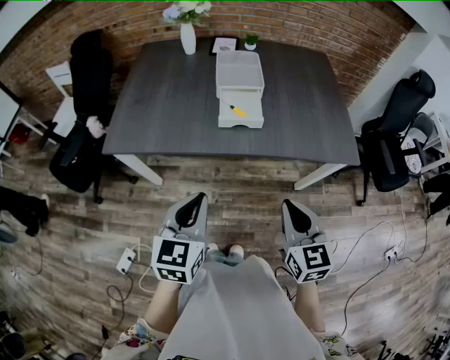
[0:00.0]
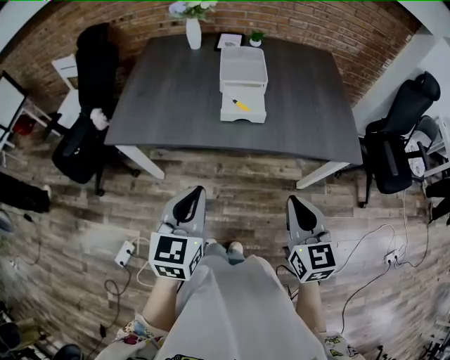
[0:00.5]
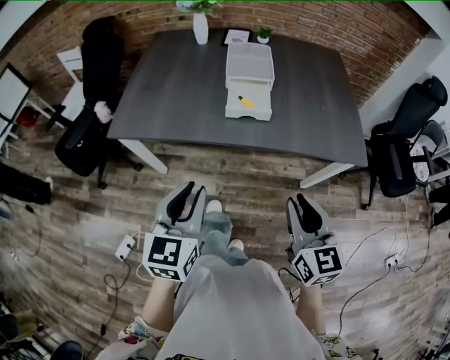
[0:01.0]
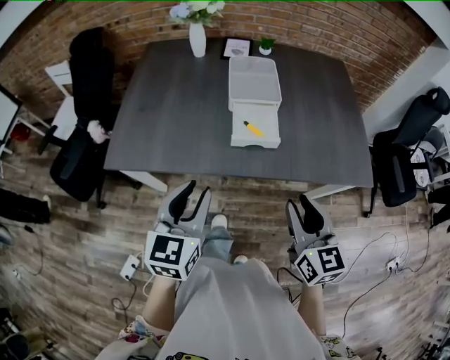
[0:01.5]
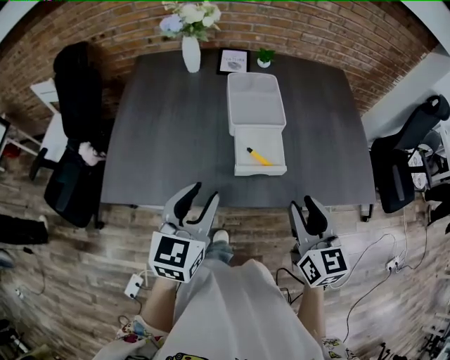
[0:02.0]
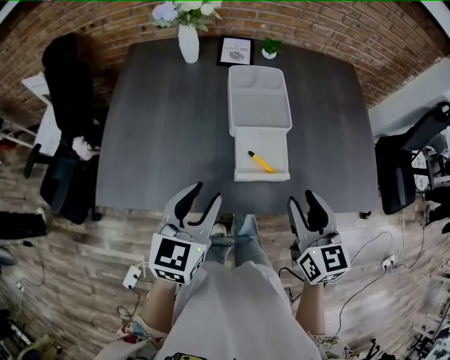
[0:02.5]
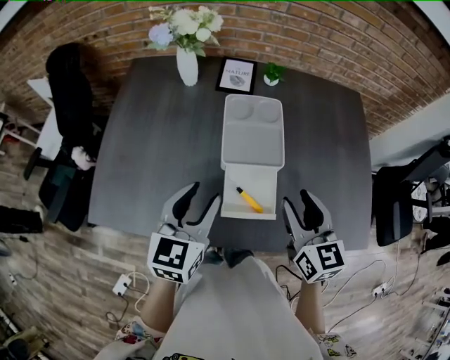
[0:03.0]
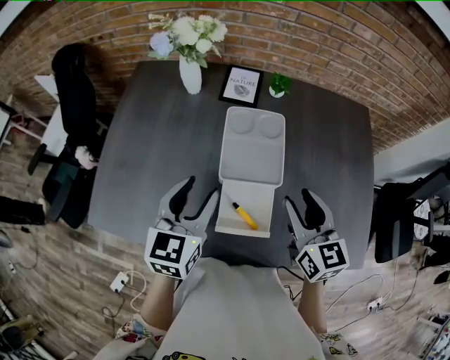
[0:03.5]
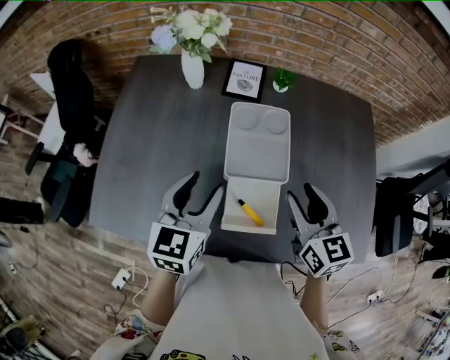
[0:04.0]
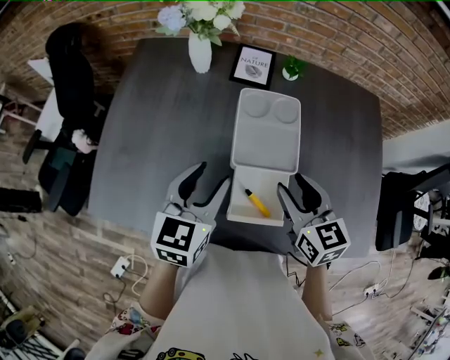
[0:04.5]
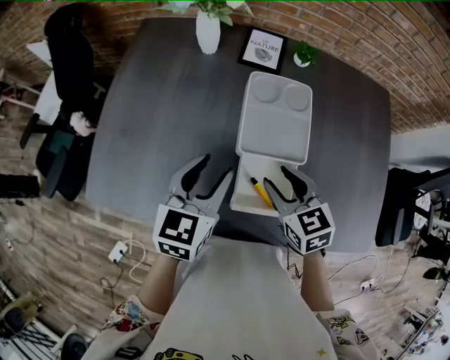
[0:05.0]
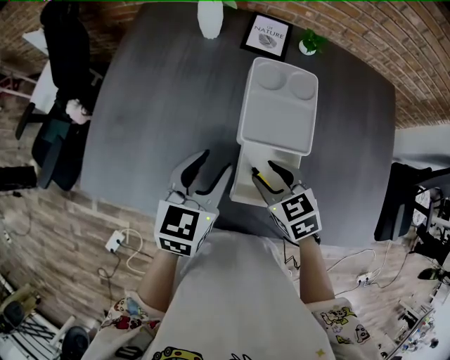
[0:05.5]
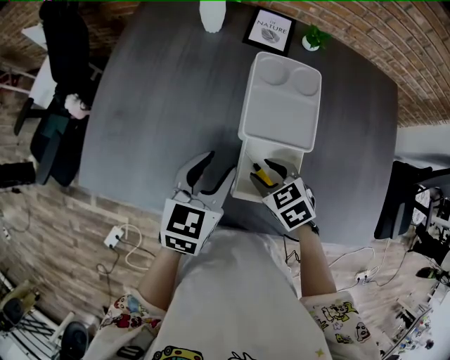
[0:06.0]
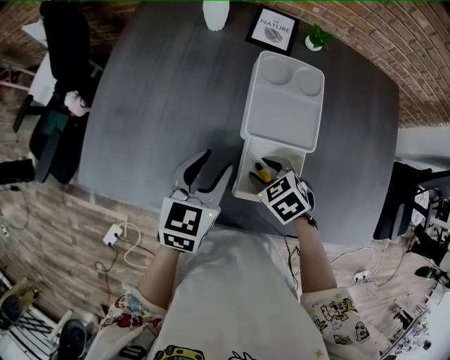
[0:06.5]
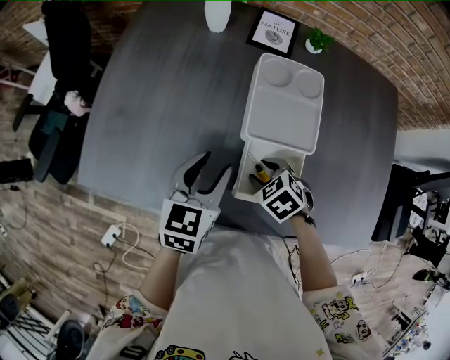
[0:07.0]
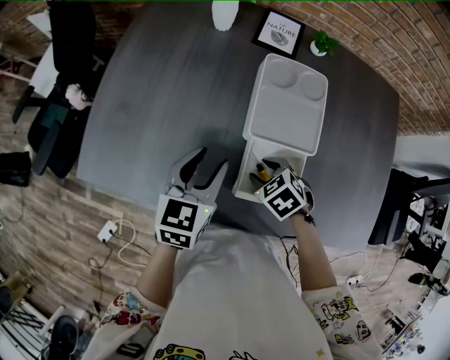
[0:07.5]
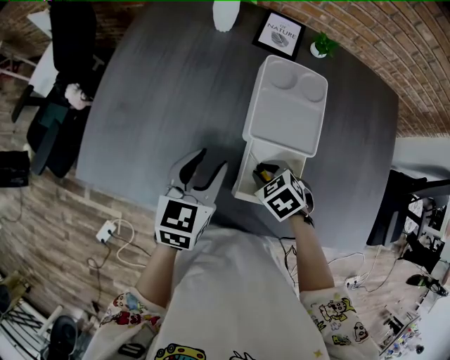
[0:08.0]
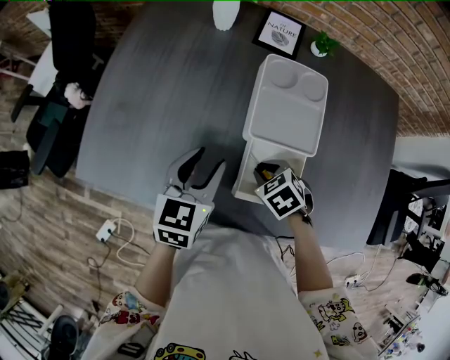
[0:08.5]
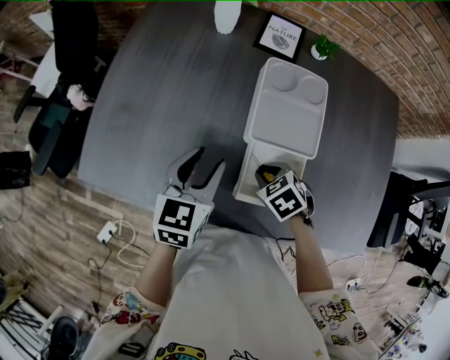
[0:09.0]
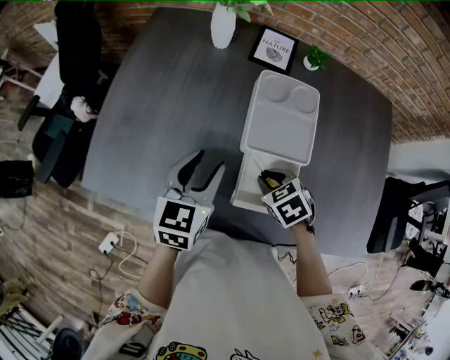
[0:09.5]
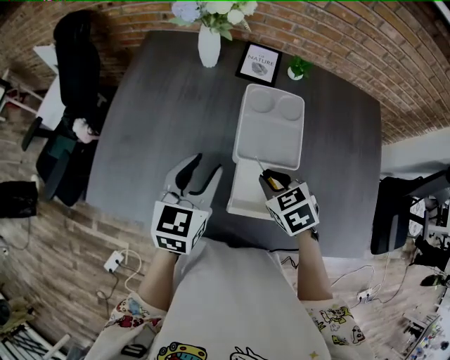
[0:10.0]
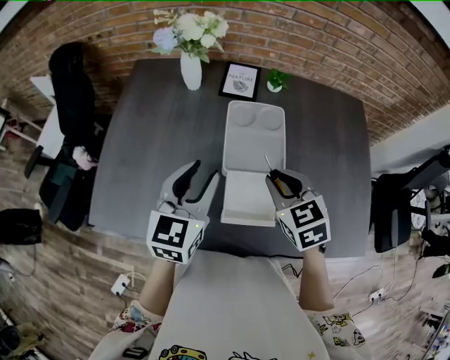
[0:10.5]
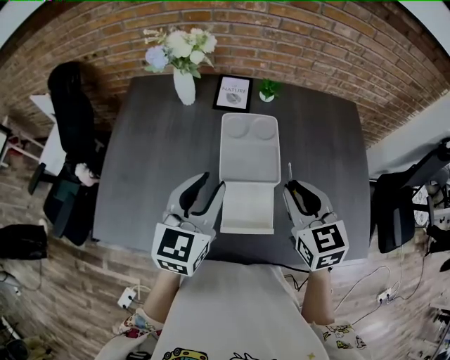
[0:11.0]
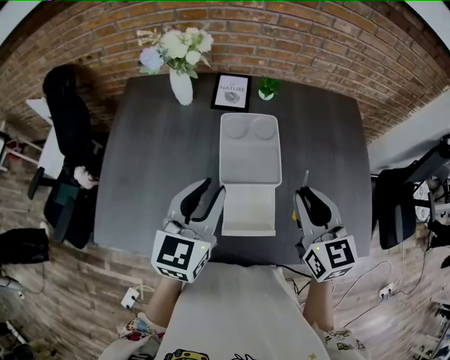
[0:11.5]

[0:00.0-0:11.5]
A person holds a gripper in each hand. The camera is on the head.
0:00.0 to 0:02.0: The grippers both shift forward by about 20 cm. The right gripper opens up; the left gripper opens up.
0:02.0 to 0:04.0: The two grippers go about 20 cm forward.
0:04.0 to 0:06.0: The left gripper moves downward, some 10 cm; the right gripper goes roughly 20 cm downward and to the left, and tilts its fingers roughly 40 degrees downward.
0:06.0 to 0:07.5: There are only small adjustments of the grippers.
0:07.5 to 0:09.5: The right gripper closes its fingers.
0:09.5 to 0:11.5: The left gripper travels upward and to the right by some 15 cm. Meanwhile the right gripper goes roughly 25 cm upward and to the right, and tips its fingers upward by about 50 degrees.

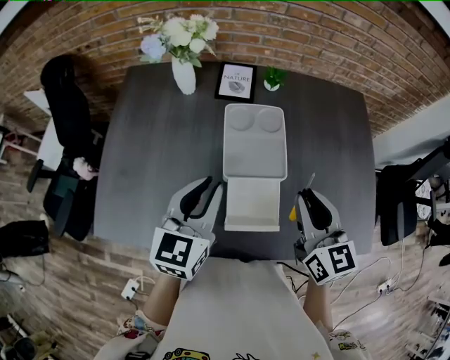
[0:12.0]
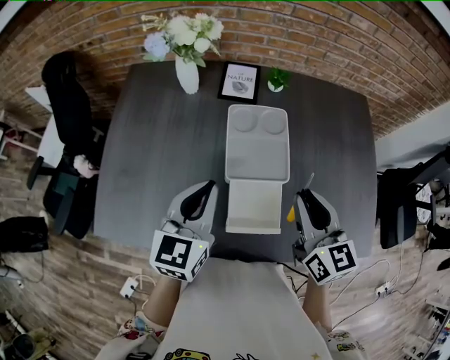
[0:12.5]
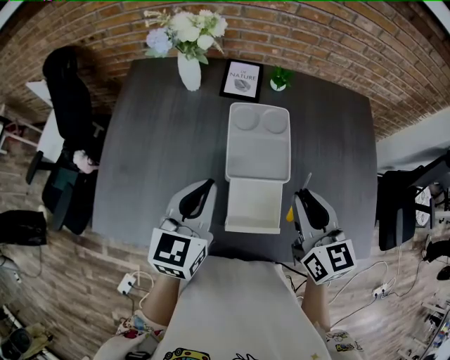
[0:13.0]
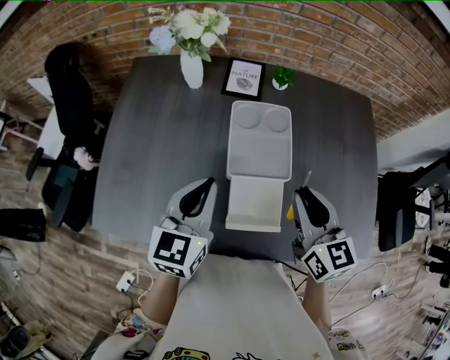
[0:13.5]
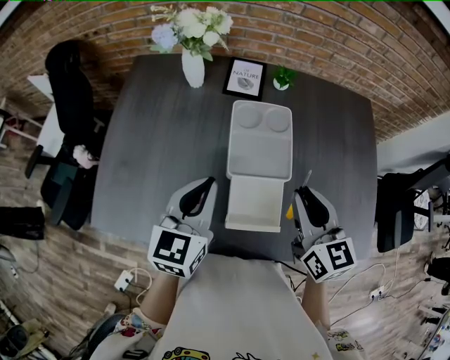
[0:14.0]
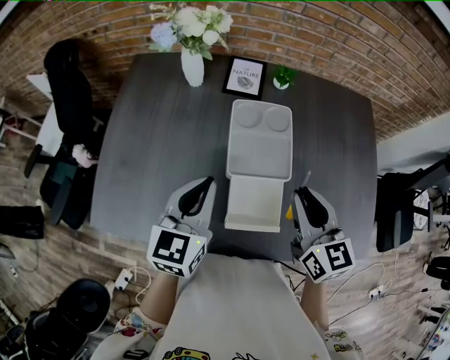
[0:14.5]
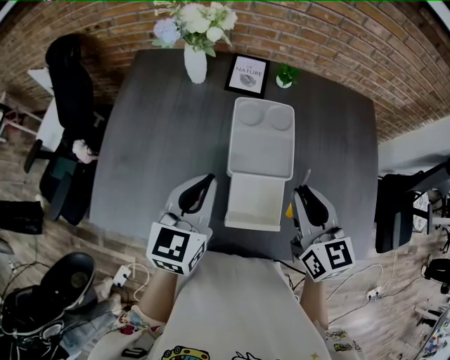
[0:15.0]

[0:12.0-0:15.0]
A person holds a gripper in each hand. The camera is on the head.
0:12.0 to 0:13.5: The grippers stay close to where they were, moving slightly.
0:13.5 to 0:15.0: Both grippers stay put.

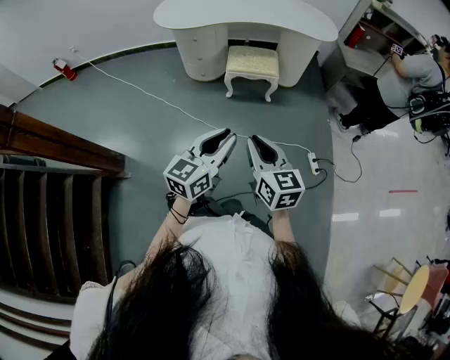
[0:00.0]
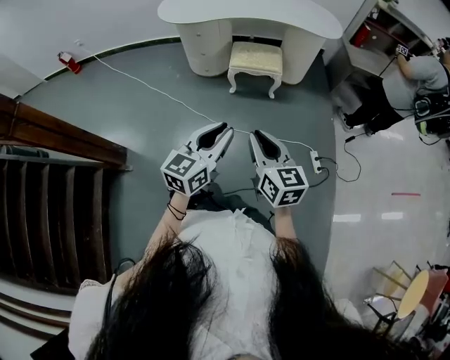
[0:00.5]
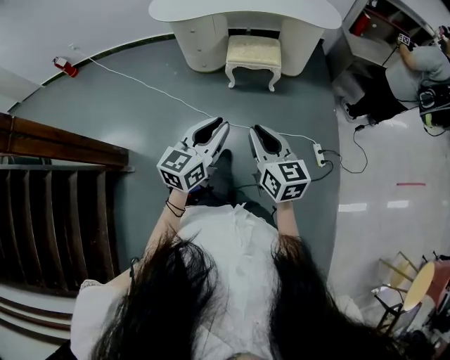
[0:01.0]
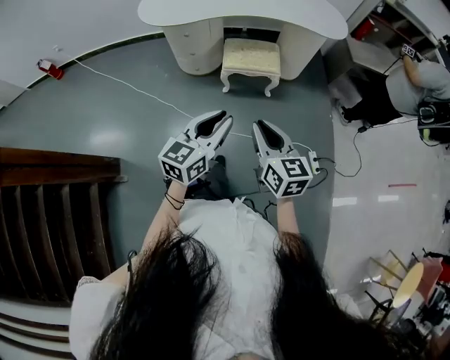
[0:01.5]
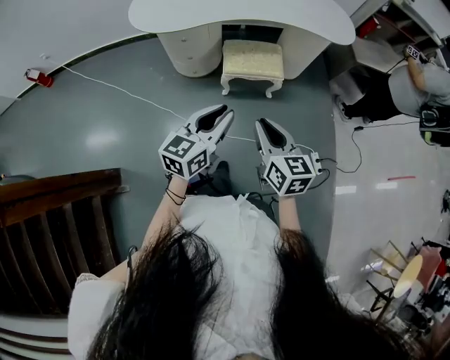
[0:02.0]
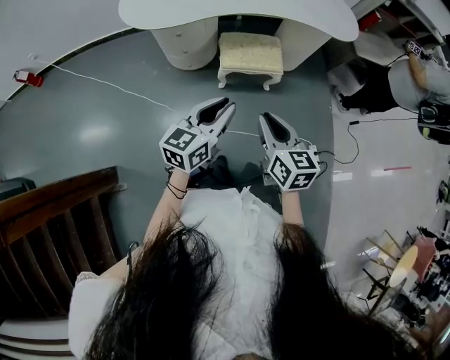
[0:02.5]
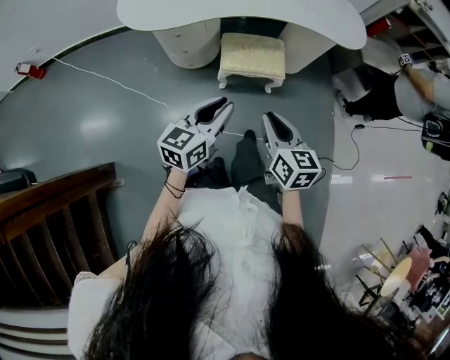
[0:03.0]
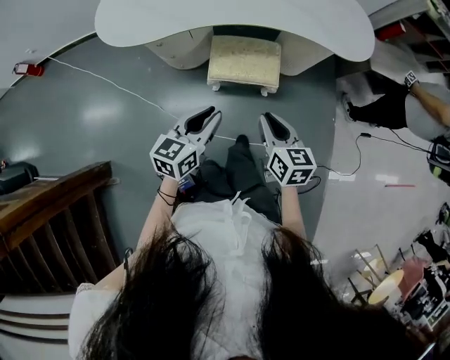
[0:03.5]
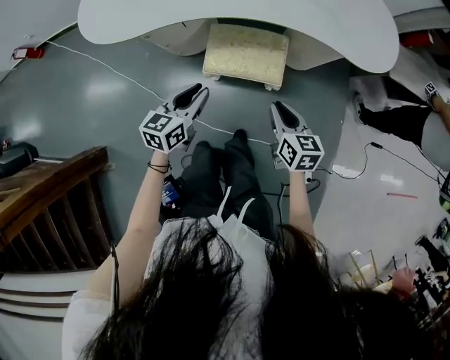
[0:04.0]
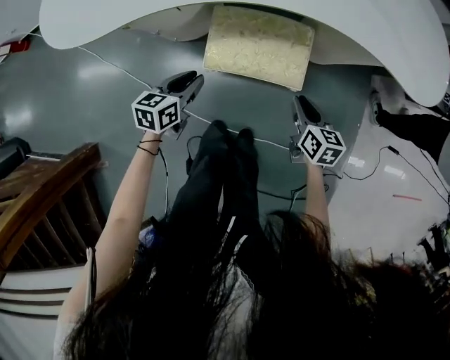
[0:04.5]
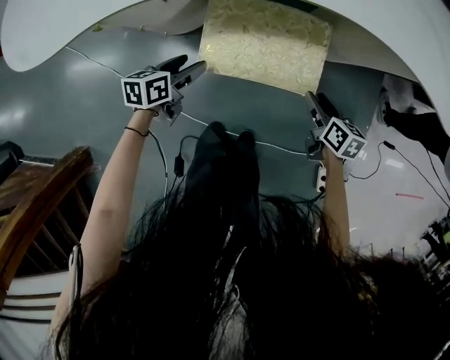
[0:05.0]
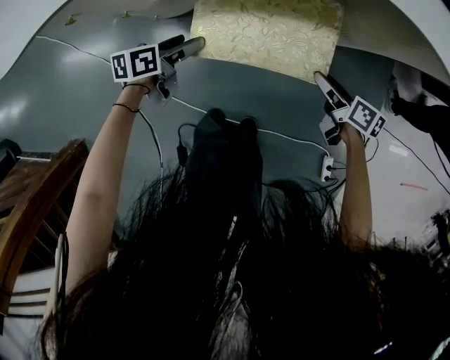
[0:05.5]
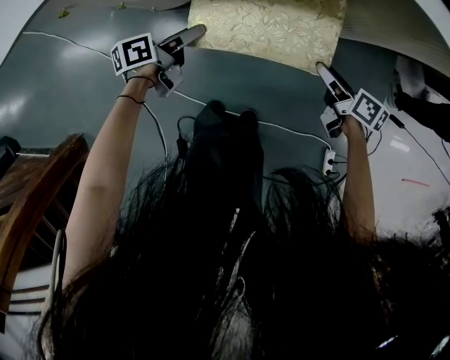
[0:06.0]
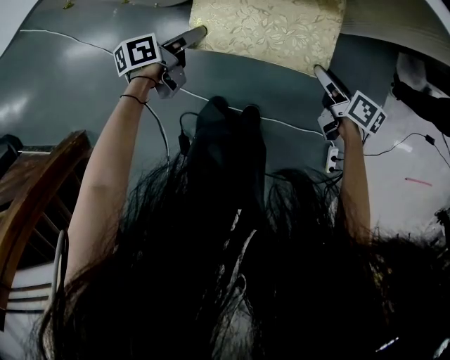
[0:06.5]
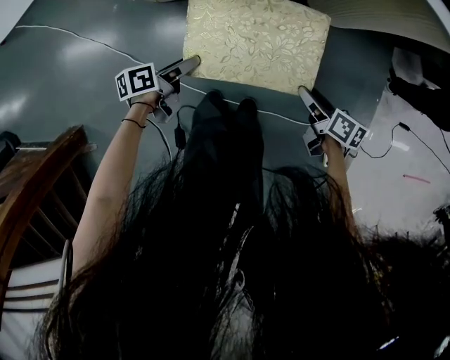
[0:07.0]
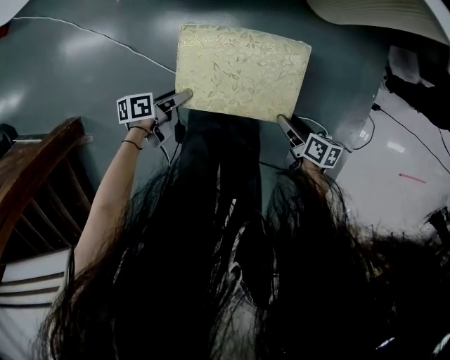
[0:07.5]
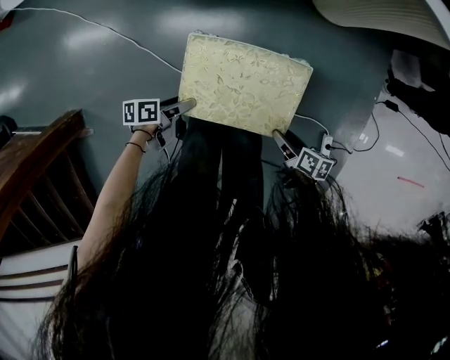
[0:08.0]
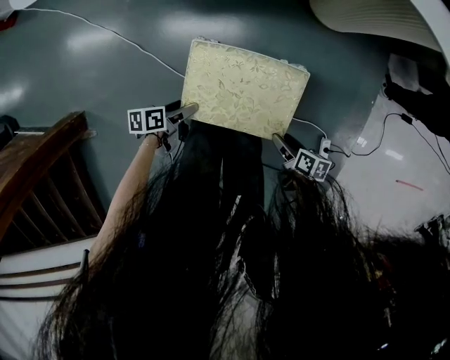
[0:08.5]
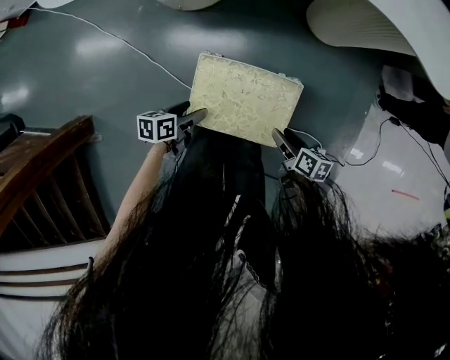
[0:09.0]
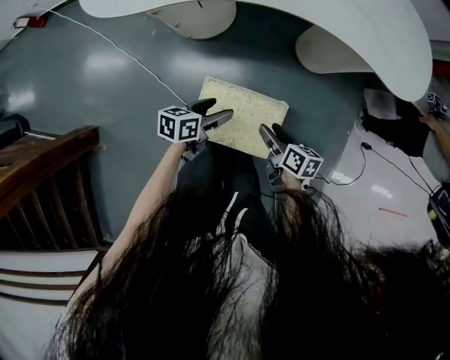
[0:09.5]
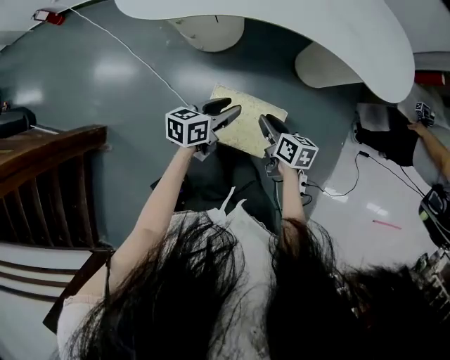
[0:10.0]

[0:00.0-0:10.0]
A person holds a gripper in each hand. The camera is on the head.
0:00.0 to 0:02.0: Both grippers move forward, about 25 cm.
0:02.0 to 0:04.0: The right gripper moves forward, downward and to the right, roughly 40 cm; the left gripper is displaced forward and downward by some 35 cm, and changes its angle by about 20 degrees.
0:04.0 to 0:06.0: Both grippers travel together downward, approximately 35 cm. The right gripper rotates about 40 degrees, and opens its fingers. The left gripper rolls counterclockwise, seen from behind, by roughly 40 degrees, and opens.
0:06.0 to 0:08.0: The left gripper turns by about 30 degrees.
0:08.0 to 0:10.0: The two grippers go approximately 35 cm upward. The right gripper rotates approximately 30 degrees, and closes its fingers. Meanwhile the left gripper swivels about 40 degrees, and closes.

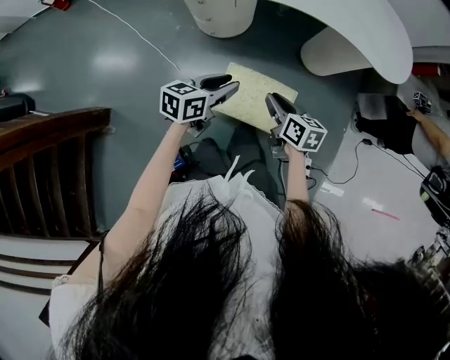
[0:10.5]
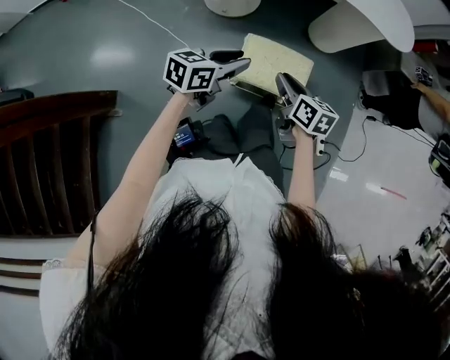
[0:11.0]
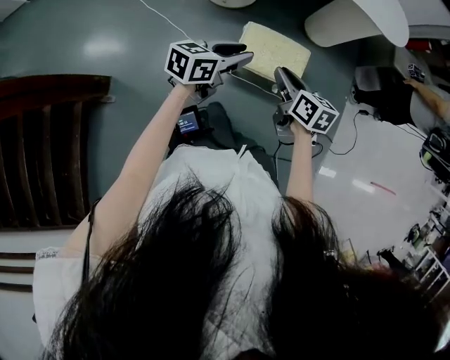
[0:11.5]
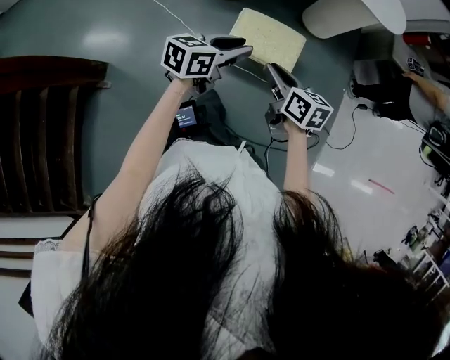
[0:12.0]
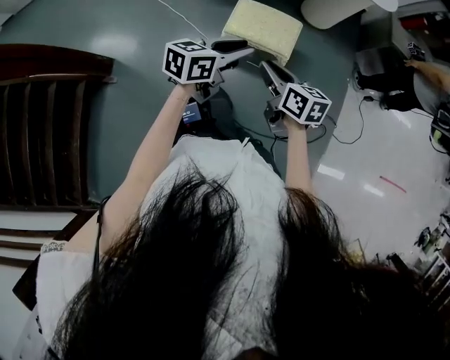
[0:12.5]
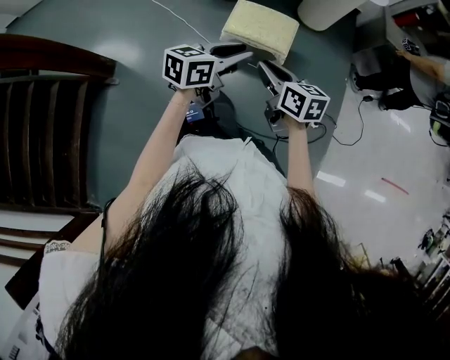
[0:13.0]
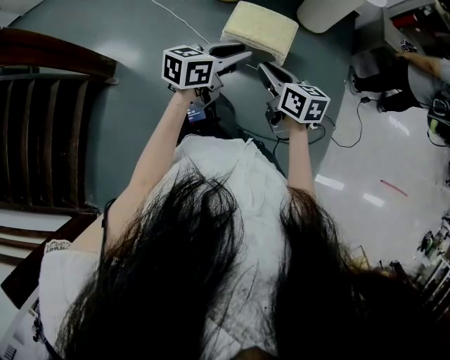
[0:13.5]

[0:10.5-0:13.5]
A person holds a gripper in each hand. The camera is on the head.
0:10.5 to 0:12.0: Both grippers move backward, approximately 25 cm.
0:12.0 to 0:13.5: The left gripper shifts roughly 20 cm backward and to the right. The right gripper moves backward, roughly 15 cm.
